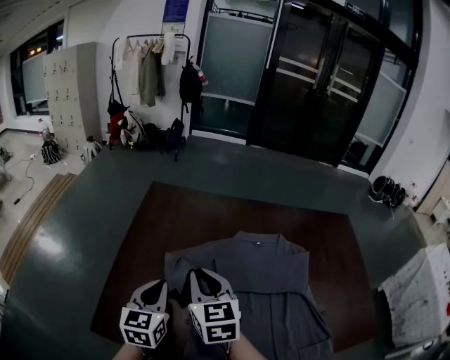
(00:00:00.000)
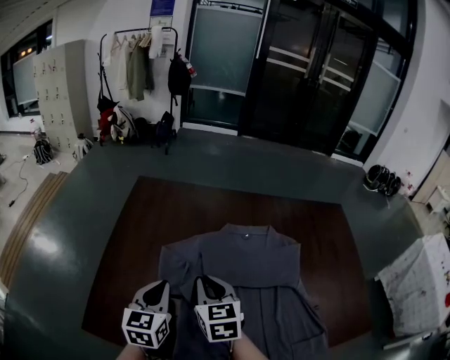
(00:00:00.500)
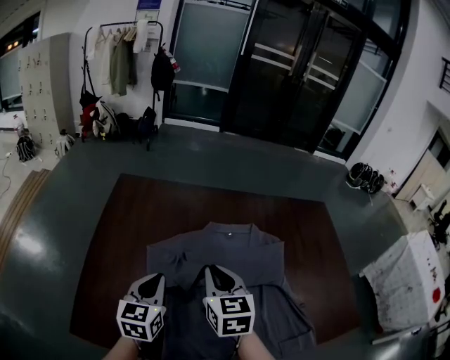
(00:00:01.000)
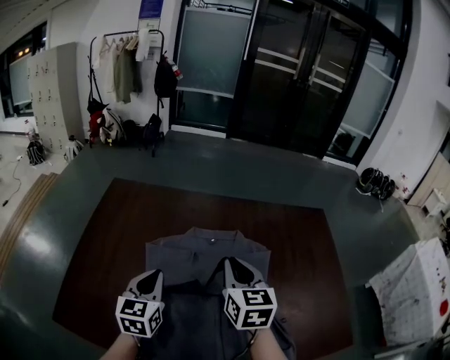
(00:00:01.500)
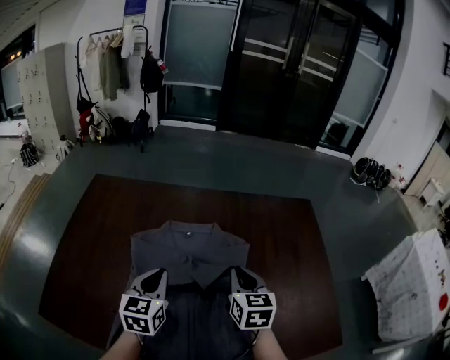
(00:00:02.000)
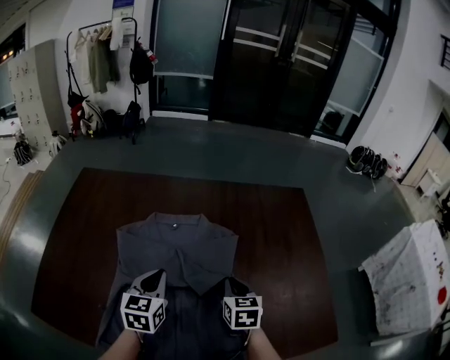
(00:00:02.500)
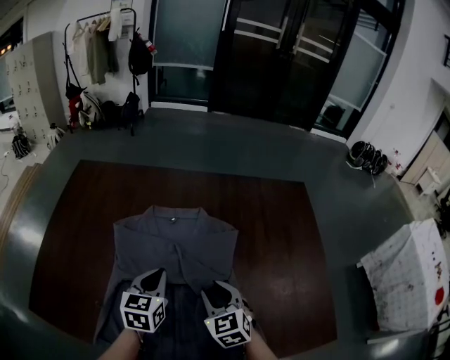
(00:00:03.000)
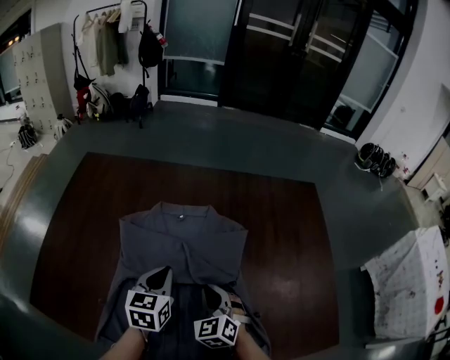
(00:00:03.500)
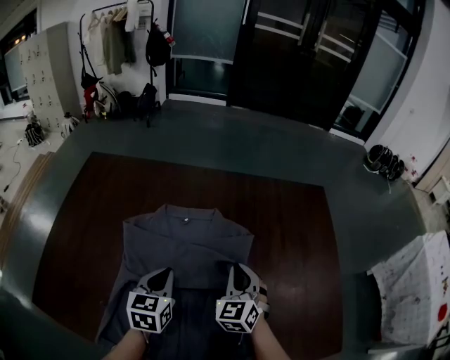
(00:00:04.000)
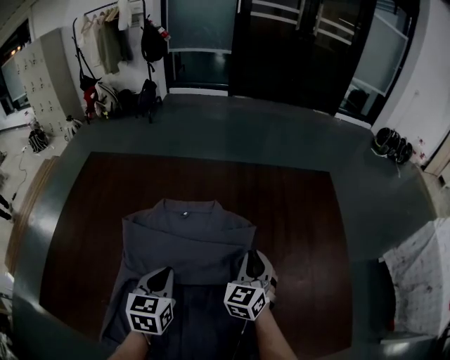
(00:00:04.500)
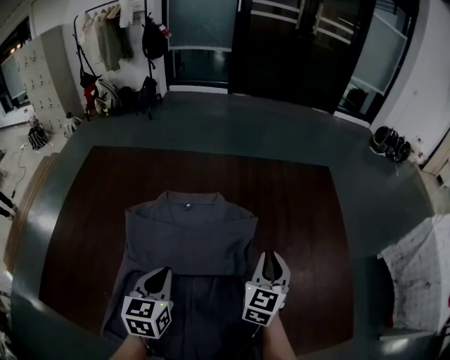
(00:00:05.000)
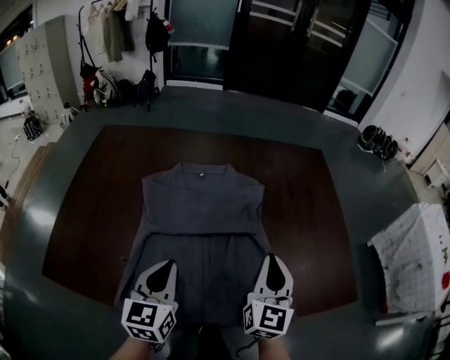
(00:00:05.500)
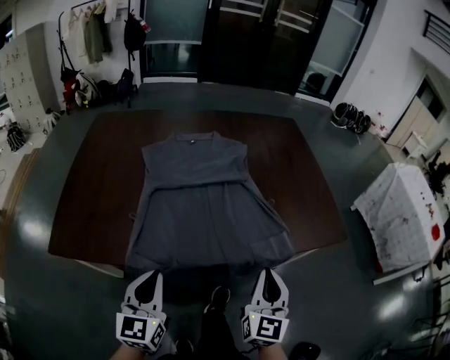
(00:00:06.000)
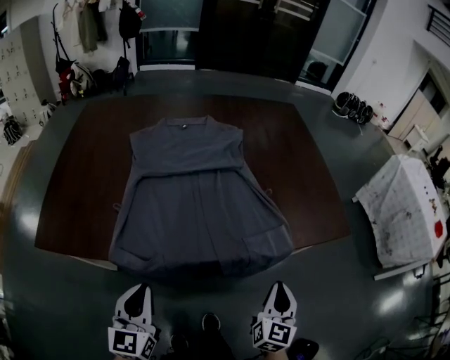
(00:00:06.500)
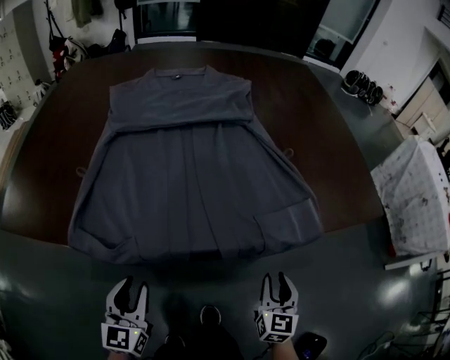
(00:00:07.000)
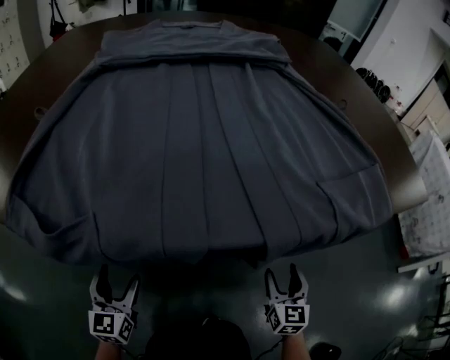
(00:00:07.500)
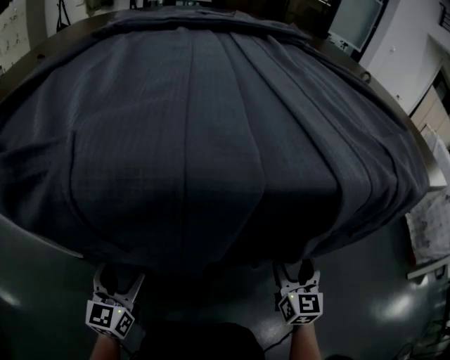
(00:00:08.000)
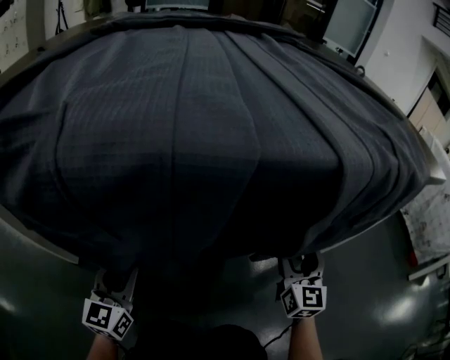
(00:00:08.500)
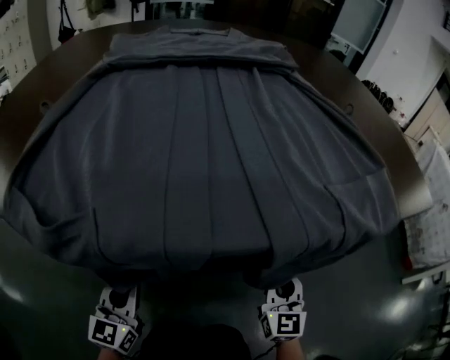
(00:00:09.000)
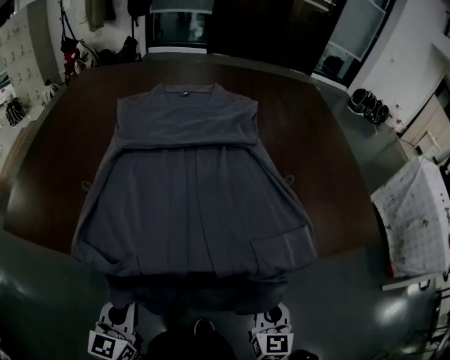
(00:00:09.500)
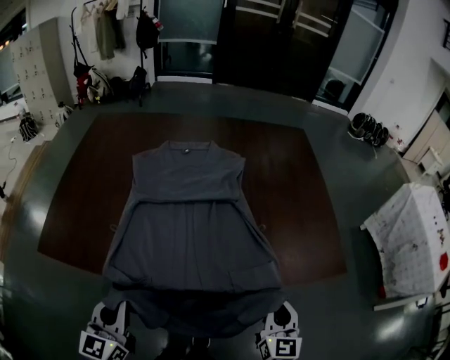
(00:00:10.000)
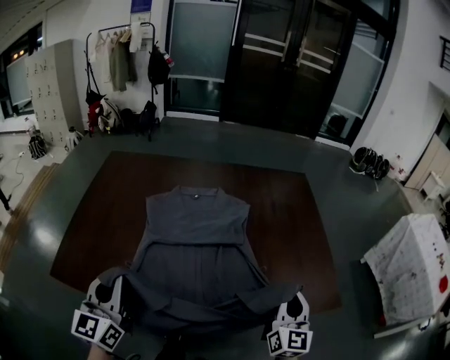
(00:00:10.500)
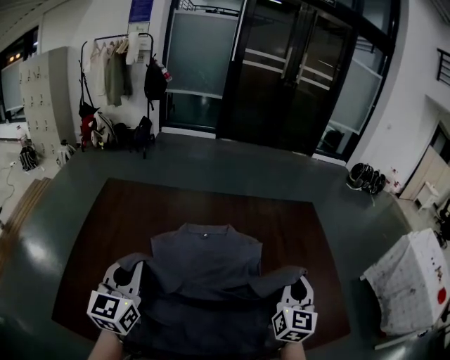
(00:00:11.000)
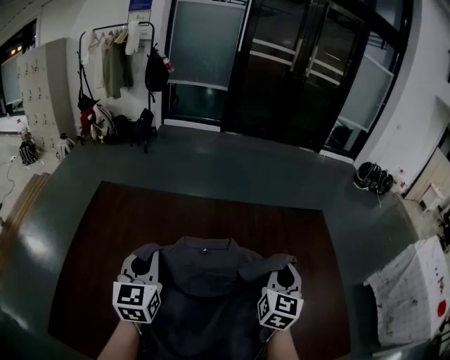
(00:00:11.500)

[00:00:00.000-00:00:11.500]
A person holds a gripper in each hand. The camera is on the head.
00:00:00.000 to 00:00:02.000: Both grippers travel together to the right, approximately 35 cm.
00:00:02.000 to 00:00:04.000: The grippers both shift downward by roughly 10 cm. The right gripper turns by some 40 degrees.
00:00:04.000 to 00:00:06.000: The grippers both shift backward by about 40 cm. The right gripper swivels approximately 40 degrees.
00:00:06.000 to 00:00:07.500: Both grippers move downward, about 50 cm. The right gripper opens up; the left gripper opens up.
00:00:07.500 to 00:00:09.500: Both grippers travel together upward, about 20 cm. The left gripper closes its fingers. The right gripper closes up.
00:00:09.500 to 00:00:11.500: The pair of grippers is taken forward, roughly 50 cm. Both grippers move upward, some 35 cm.

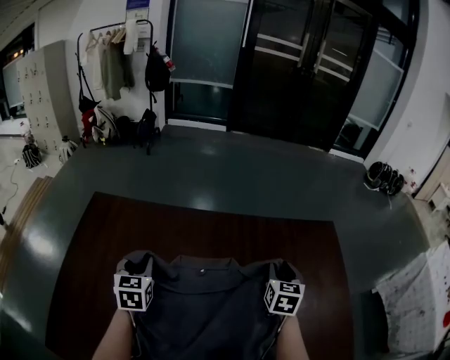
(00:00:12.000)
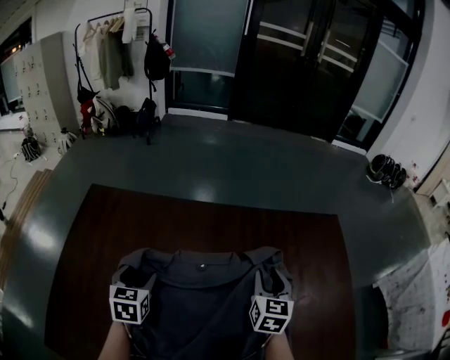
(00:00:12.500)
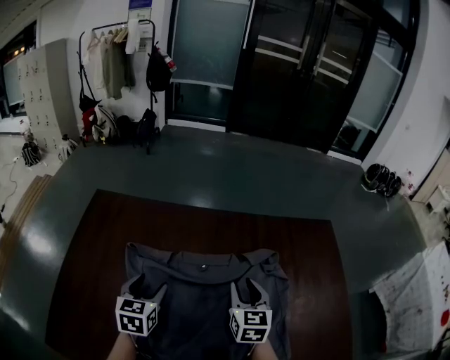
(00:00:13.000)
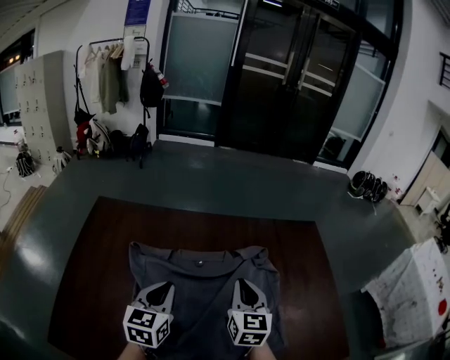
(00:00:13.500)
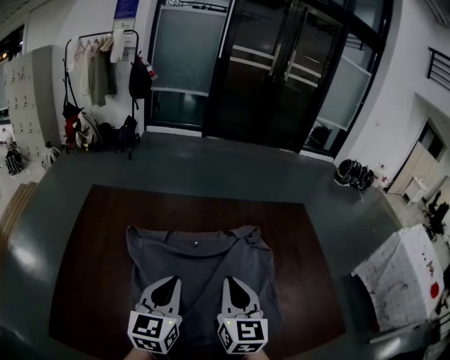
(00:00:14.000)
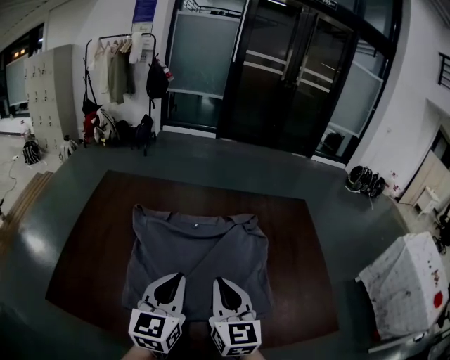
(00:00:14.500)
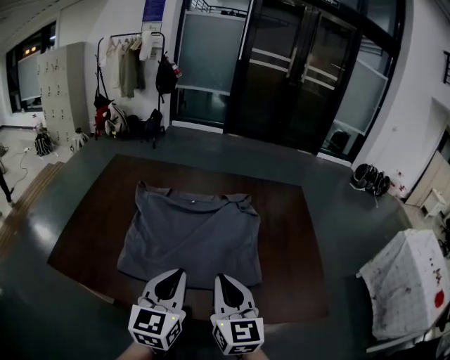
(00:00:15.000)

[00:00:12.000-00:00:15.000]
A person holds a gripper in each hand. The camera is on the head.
00:00:12.000 to 00:00:13.500: The right gripper is displaced backward, to the left and upward by roughly 20 cm; the left gripper shifts about 20 cm backward, to the right and upward, swivels about 20 degrees, and opens, then closes again.
00:00:13.500 to 00:00:15.000: The right gripper goes about 30 cm backward, while the left gripper is displaced backward and to the right by approximately 30 cm.

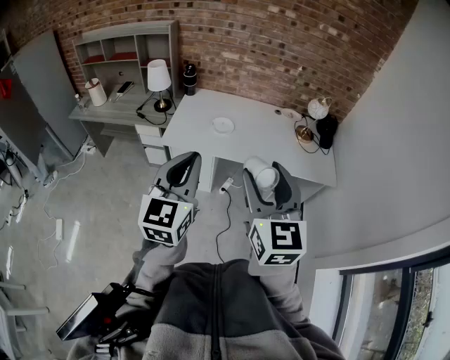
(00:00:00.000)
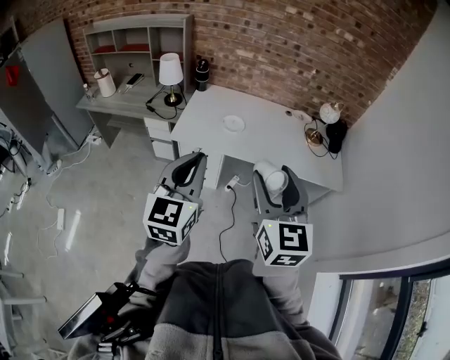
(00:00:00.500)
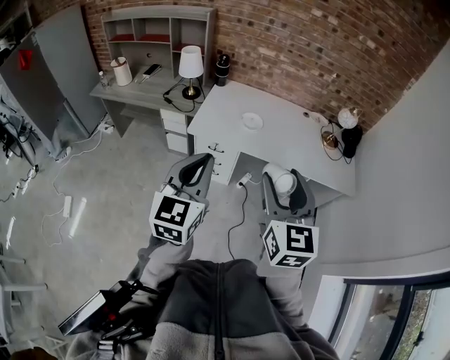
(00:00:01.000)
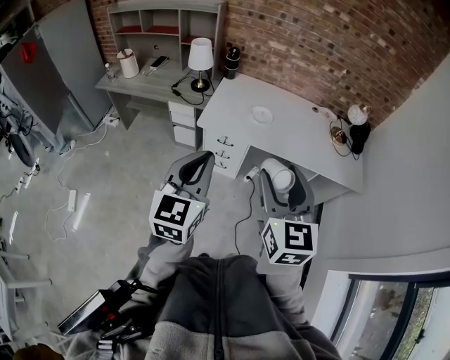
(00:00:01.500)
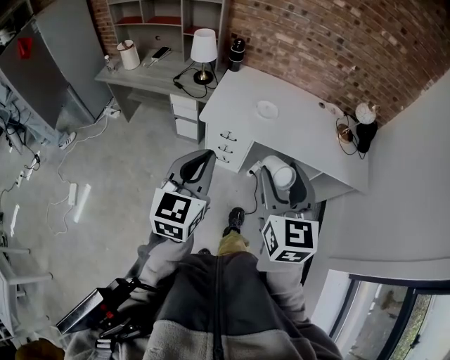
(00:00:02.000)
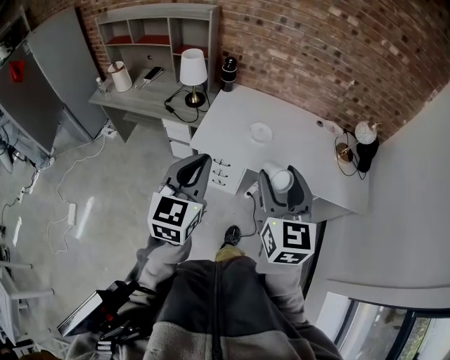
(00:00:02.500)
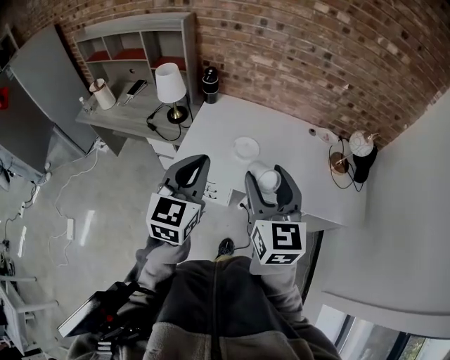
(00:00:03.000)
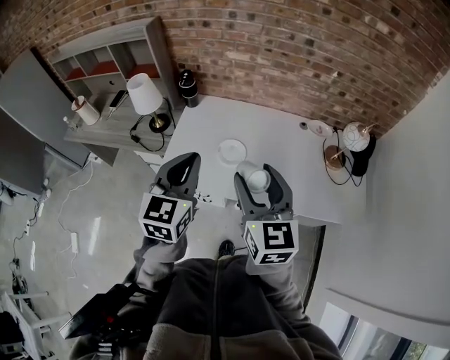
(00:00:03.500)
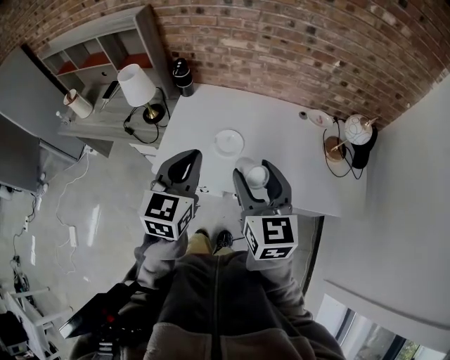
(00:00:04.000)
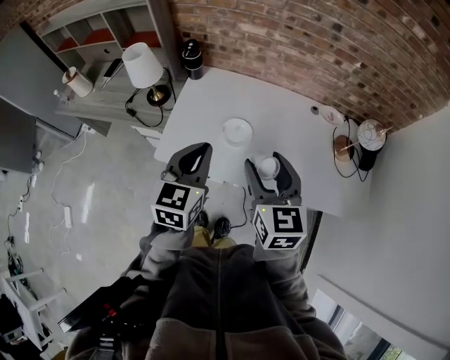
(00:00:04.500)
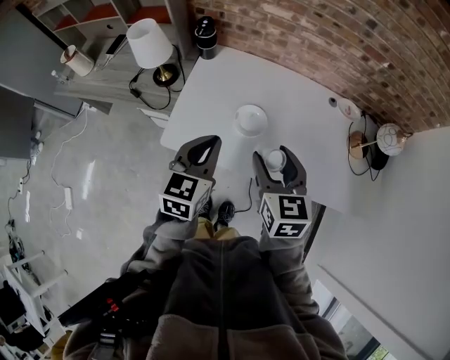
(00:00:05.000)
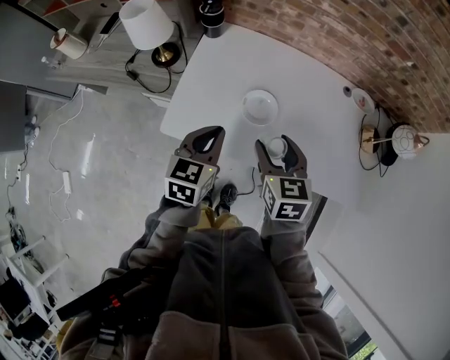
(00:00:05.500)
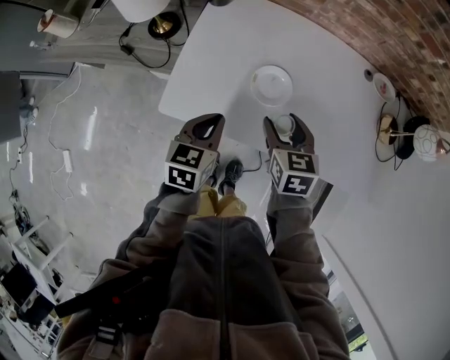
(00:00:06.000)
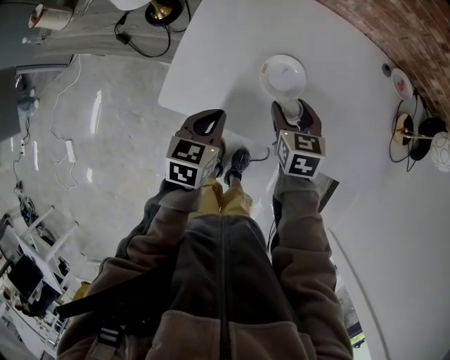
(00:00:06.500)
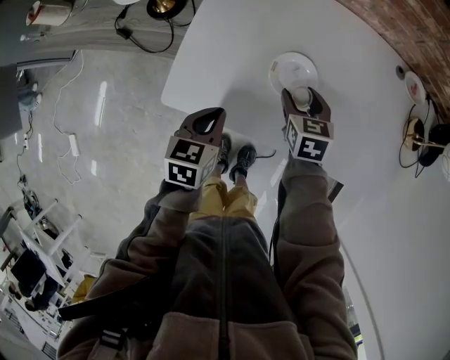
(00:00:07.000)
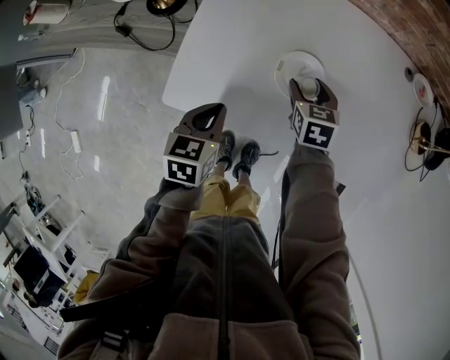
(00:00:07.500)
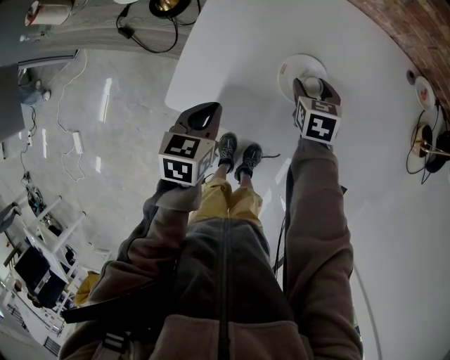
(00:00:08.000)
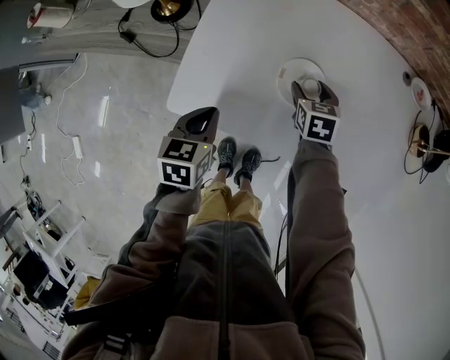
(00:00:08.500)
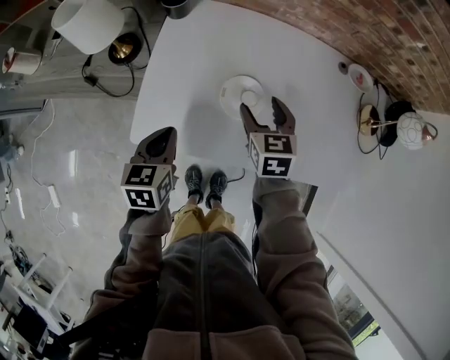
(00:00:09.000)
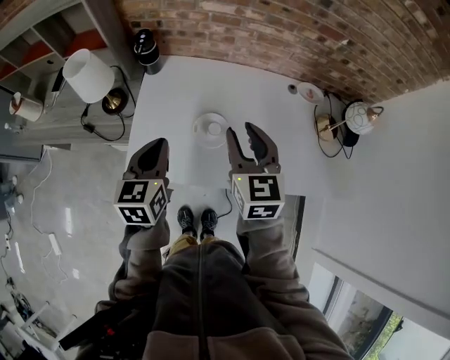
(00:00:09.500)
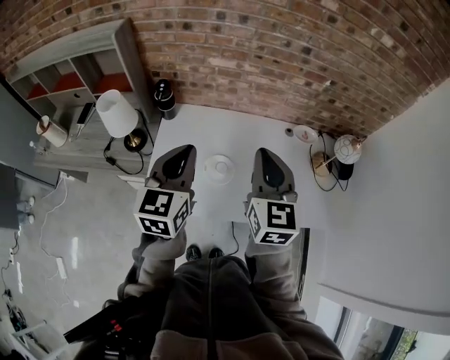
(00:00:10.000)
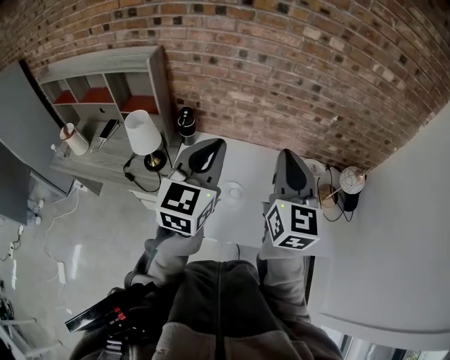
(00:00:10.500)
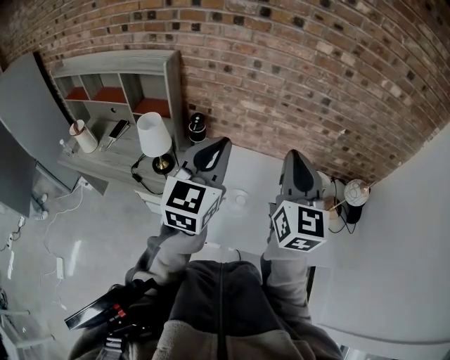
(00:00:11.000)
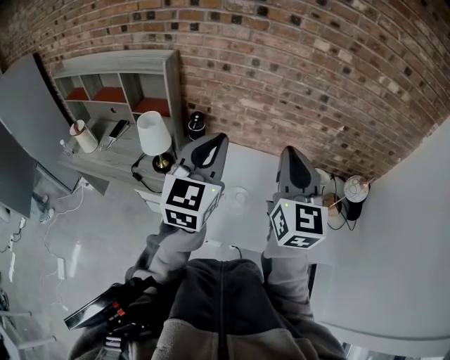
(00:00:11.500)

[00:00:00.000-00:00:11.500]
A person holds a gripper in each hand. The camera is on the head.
00:00:00.000 to 00:00:02.000: The grippers both shift to the left and downward by approximately 15 cm.
00:00:02.000 to 00:00:04.000: The right gripper goes roughly 35 cm forward; the left gripper shifts roughly 40 cm forward and to the right.
00:00:04.000 to 00:00:06.000: The left gripper goes approximately 25 cm downward, and turns by about 30 degrees. Meanwhile the right gripper moves downward and forward, about 30 cm, and tilts its fingers some 30 degrees downward.
00:00:06.000 to 00:00:07.500: The right gripper moves downward and forward, some 20 cm. The left gripper heads downward, covering about 10 cm.
00:00:07.500 to 00:00:09.500: Both grippers travel together upward, about 25 cm. The right gripper angles its fingers upward, by approximately 30 degrees; the left gripper rotates approximately 20 degrees.
00:00:09.500 to 00:00:11.500: Both grippers move upward, approximately 25 cm. The right gripper turns by roughly 30 degrees, and closes its fingers. The left gripper turns by about 30 degrees.
